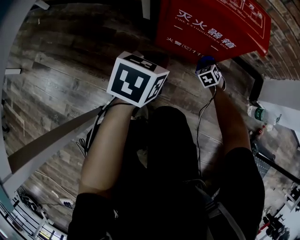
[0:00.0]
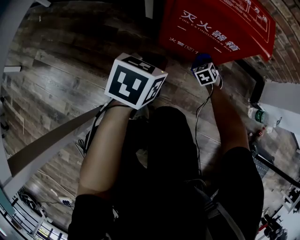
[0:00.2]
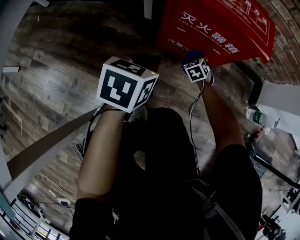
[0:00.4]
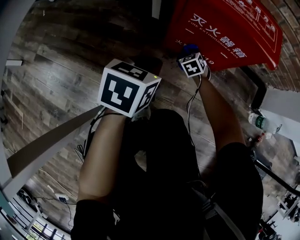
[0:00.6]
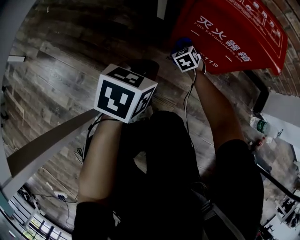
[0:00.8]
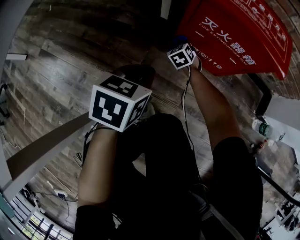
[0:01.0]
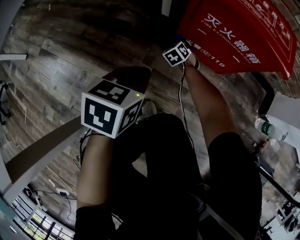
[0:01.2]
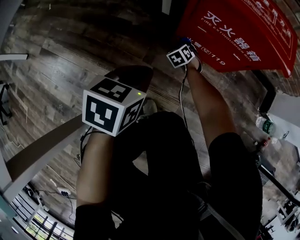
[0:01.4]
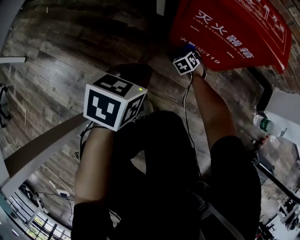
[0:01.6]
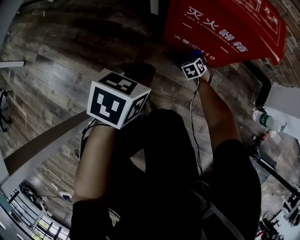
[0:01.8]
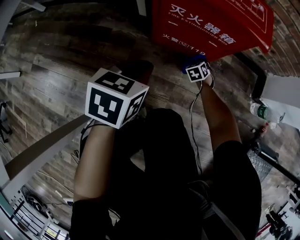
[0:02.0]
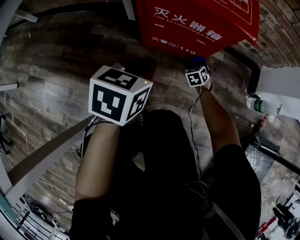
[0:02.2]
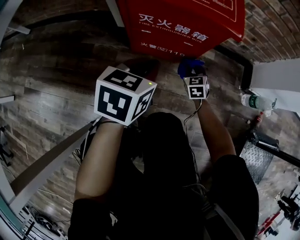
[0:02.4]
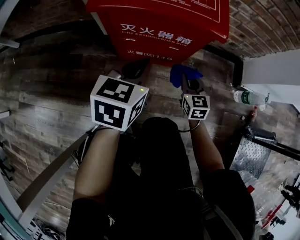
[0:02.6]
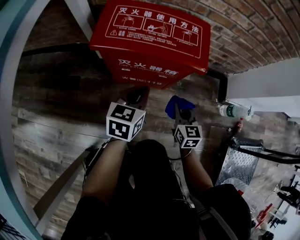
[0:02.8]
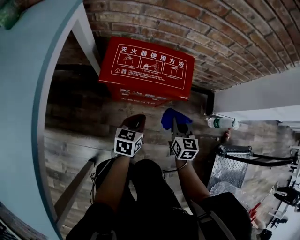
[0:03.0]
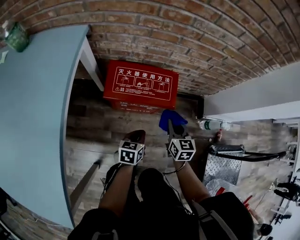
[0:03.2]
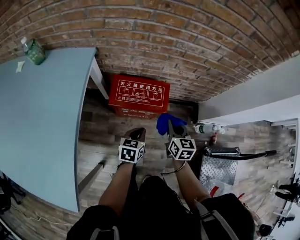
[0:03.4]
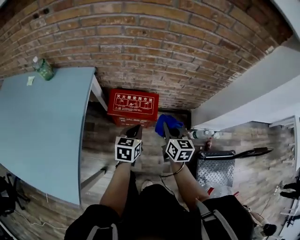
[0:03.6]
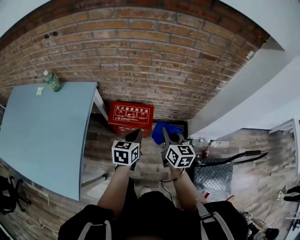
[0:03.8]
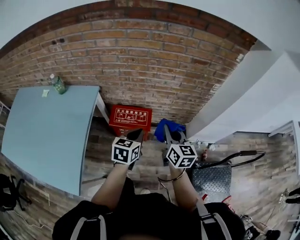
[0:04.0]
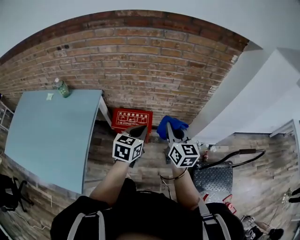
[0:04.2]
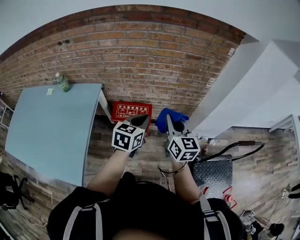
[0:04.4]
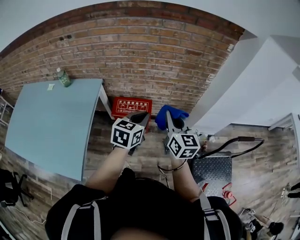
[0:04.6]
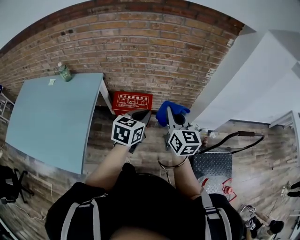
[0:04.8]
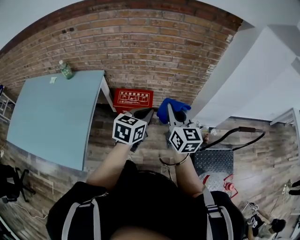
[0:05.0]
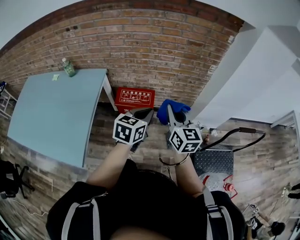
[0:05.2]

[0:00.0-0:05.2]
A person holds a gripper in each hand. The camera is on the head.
0:00.0 to 0:01.8: The right gripper shifts about 5 cm downward, and moves approximately 25 cm to the left and comes back.
0:01.8 to 0:03.4: The left gripper goes about 30 cm upward and to the right. Meanwhile the right gripper shifts roughly 60 cm upward, and twists some 50 degrees clockwise, seen from behind.
0:03.4 to 0:05.2: The right gripper heads upward and backward, covering some 50 cm, and changes its angle by about 30 degrees; the left gripper goes approximately 40 cm upward, and rotates approximately 20 degrees.

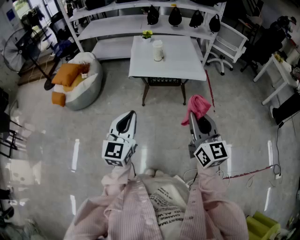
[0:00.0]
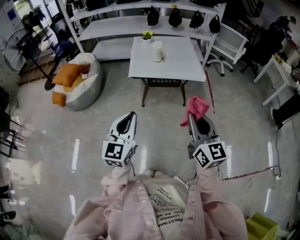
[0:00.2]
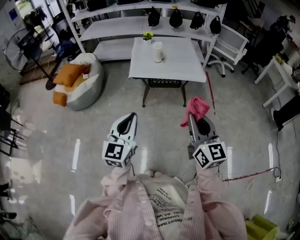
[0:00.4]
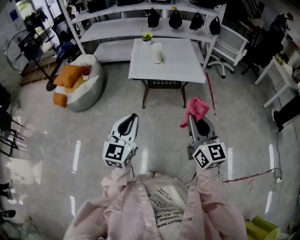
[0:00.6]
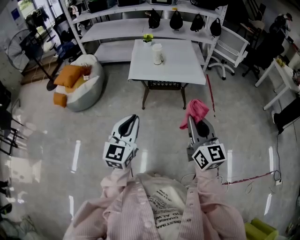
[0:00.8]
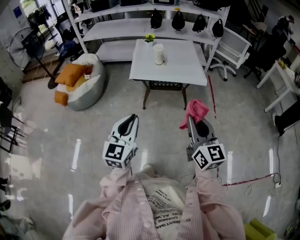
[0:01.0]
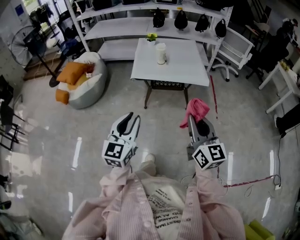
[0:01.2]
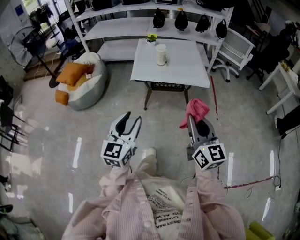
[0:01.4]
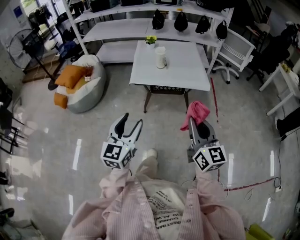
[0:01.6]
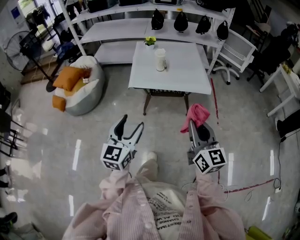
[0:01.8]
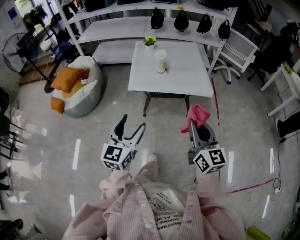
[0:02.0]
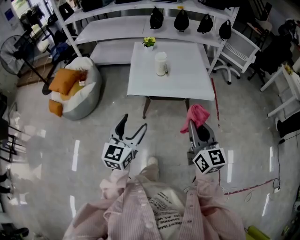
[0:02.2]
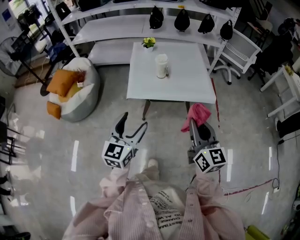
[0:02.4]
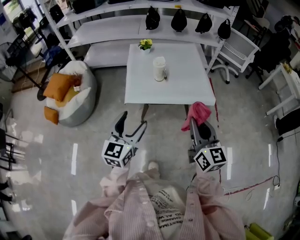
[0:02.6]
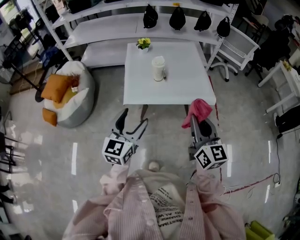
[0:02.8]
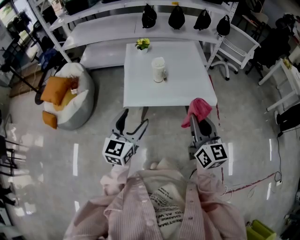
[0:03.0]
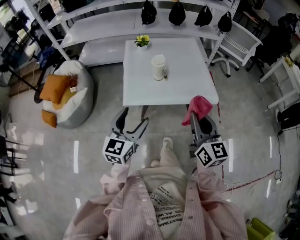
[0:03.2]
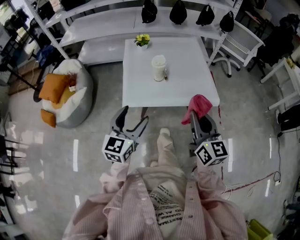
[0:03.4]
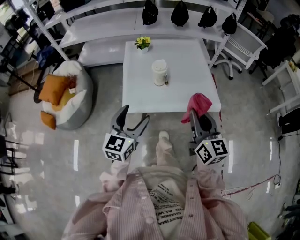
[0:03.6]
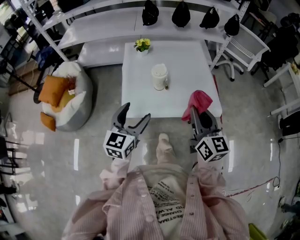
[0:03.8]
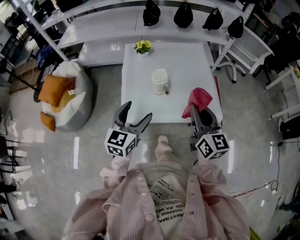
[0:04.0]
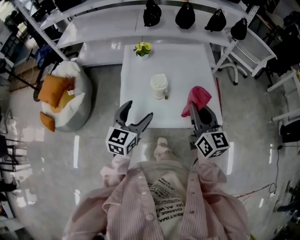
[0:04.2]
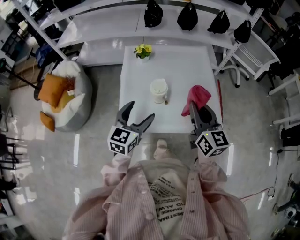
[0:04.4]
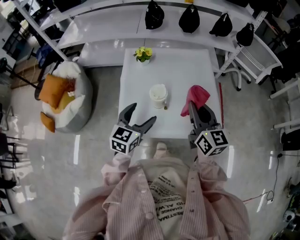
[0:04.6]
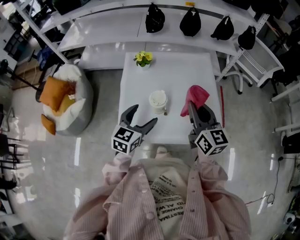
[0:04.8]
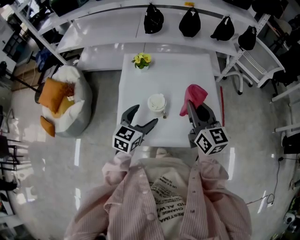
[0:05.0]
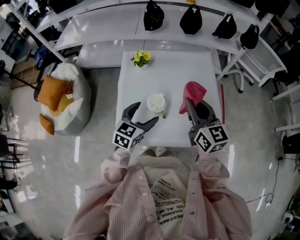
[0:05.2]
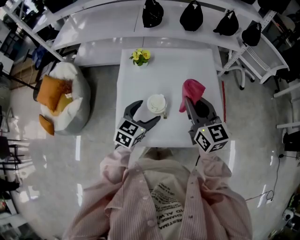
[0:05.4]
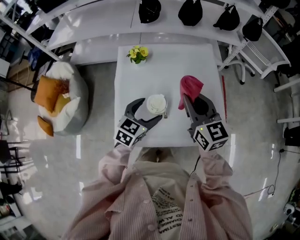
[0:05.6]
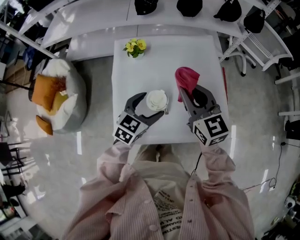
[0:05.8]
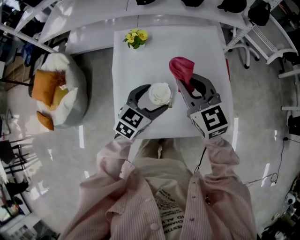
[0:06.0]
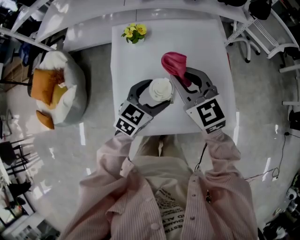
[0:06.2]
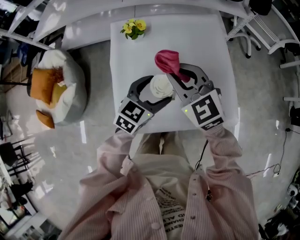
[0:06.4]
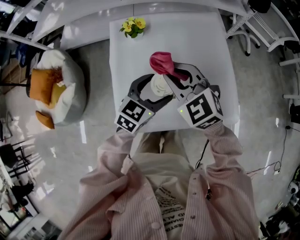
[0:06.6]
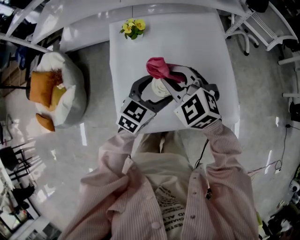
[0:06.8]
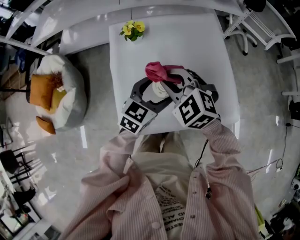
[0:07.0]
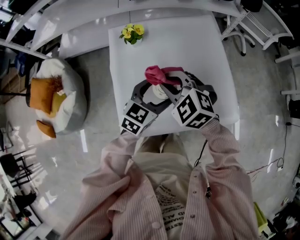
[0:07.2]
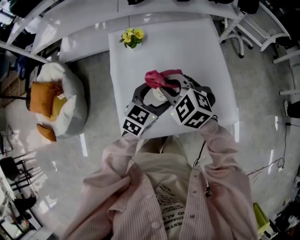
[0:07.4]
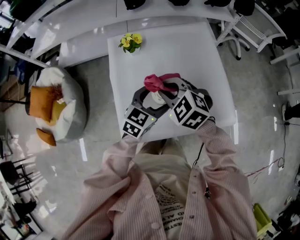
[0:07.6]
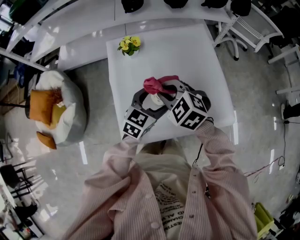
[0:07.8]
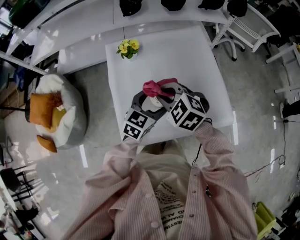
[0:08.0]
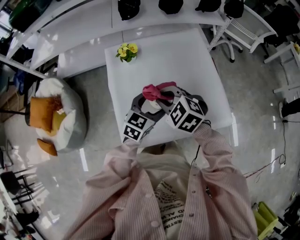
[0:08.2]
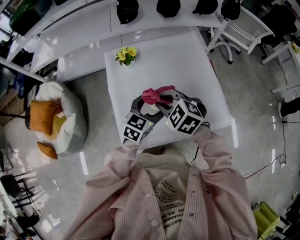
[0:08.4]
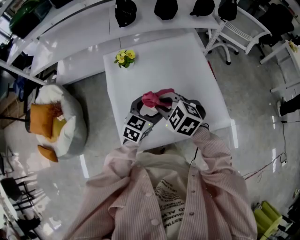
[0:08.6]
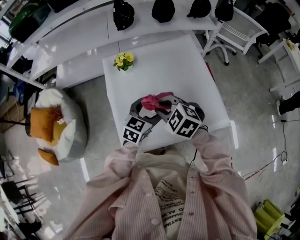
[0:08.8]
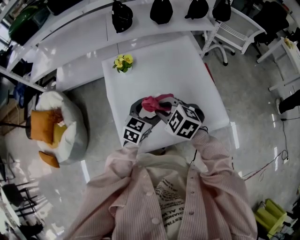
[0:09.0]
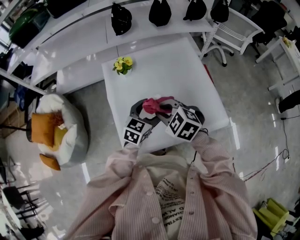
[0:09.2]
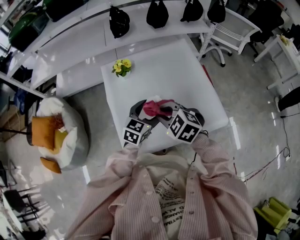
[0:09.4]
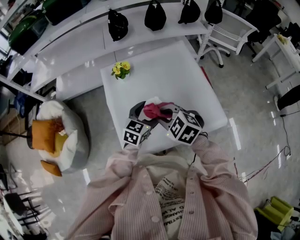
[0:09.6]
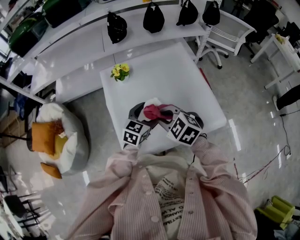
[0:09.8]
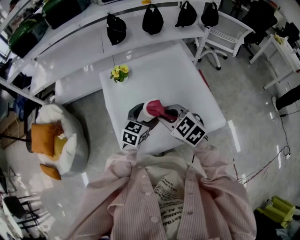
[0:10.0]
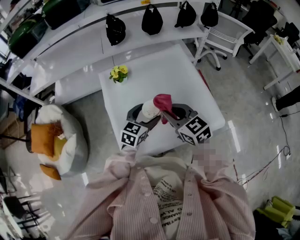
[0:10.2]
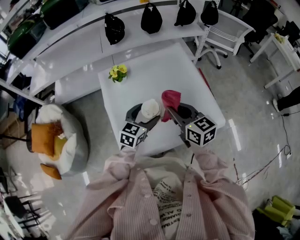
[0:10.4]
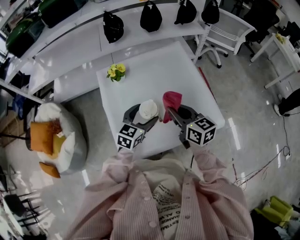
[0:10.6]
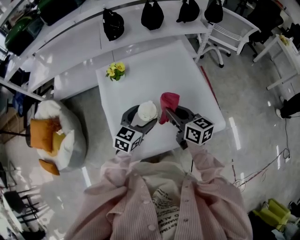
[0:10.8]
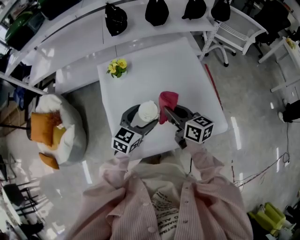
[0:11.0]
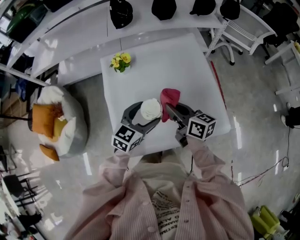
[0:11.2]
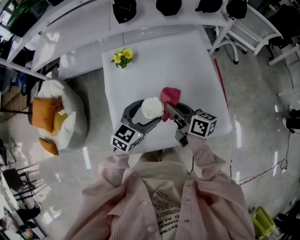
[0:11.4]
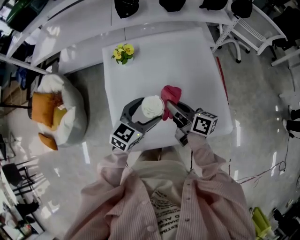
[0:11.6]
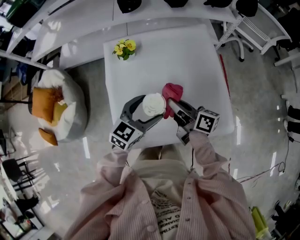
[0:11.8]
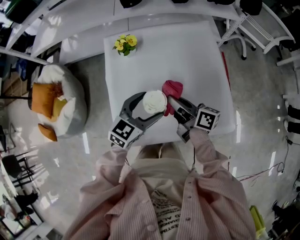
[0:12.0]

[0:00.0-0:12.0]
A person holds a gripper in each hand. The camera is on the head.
0:00.0 to 0:01.6: Both grippers move forward, about 5 cm. The left gripper opens its fingers.
0:01.6 to 0:03.0: The two grippers go some 25 cm forward.
0:03.0 to 0:04.4: Both grippers travel together forward, some 25 cm.
0:04.4 to 0:06.0: The right gripper is displaced forward and to the left by about 20 cm, and changes its angle by about 30 degrees, while the left gripper heads forward and downward, covering roughly 15 cm, and changes its angle by roughly 20 degrees.
0:06.0 to 0:07.6: The right gripper heads downward and to the left, covering approximately 10 cm, and swivels some 30 degrees.
0:07.6 to 0:09.0: The grippers move only a little.
0:09.0 to 0:10.4: The right gripper shifts some 10 cm to the right, and points its fingers about 30 degrees further upward.
0:10.4 to 0:12.0: The right gripper is displaced downward and forward by some 10 cm, and twists approximately 40 degrees clockwise, seen from behind.

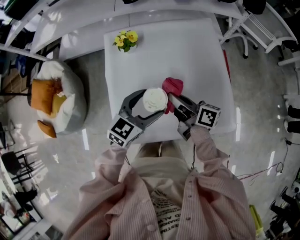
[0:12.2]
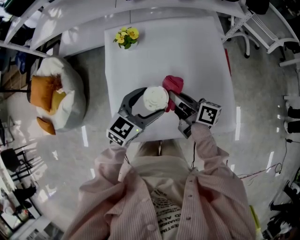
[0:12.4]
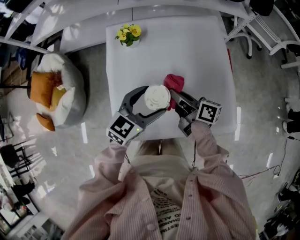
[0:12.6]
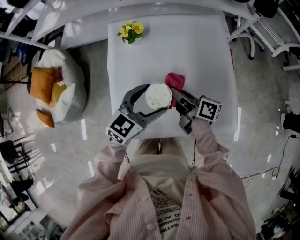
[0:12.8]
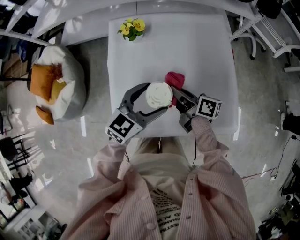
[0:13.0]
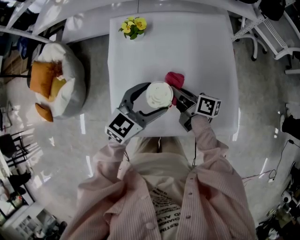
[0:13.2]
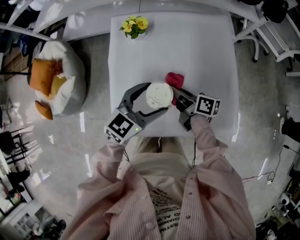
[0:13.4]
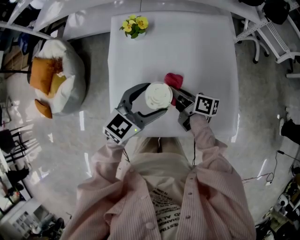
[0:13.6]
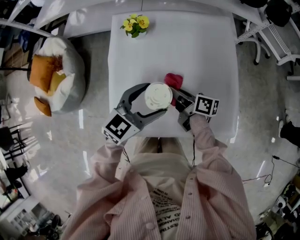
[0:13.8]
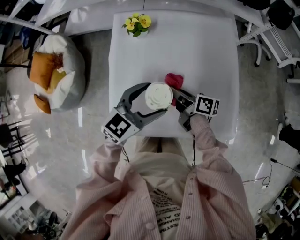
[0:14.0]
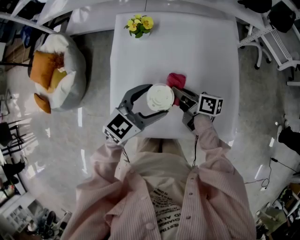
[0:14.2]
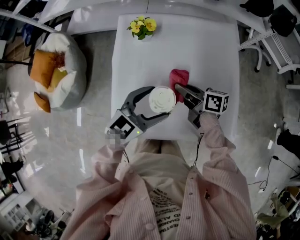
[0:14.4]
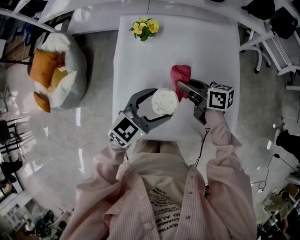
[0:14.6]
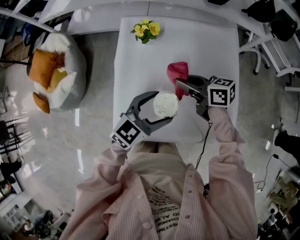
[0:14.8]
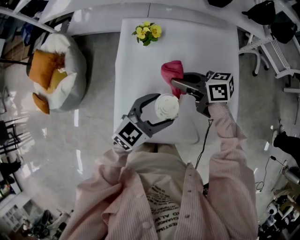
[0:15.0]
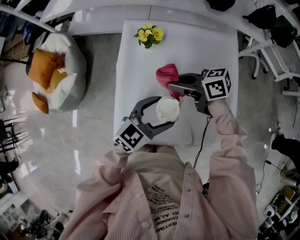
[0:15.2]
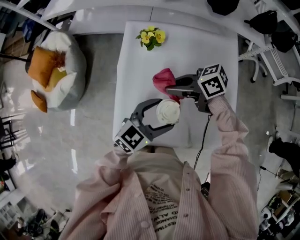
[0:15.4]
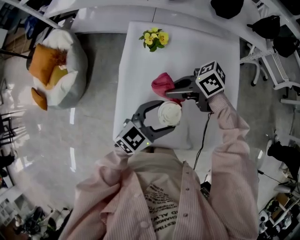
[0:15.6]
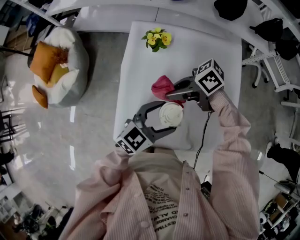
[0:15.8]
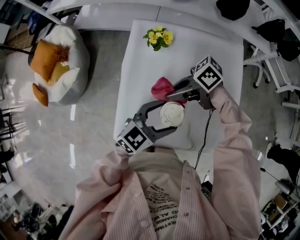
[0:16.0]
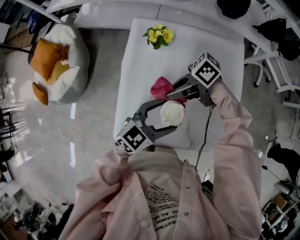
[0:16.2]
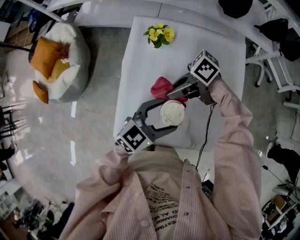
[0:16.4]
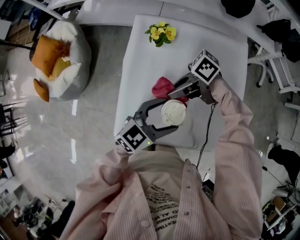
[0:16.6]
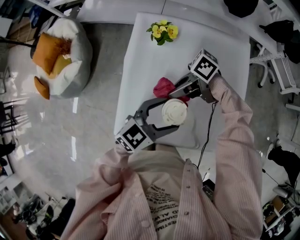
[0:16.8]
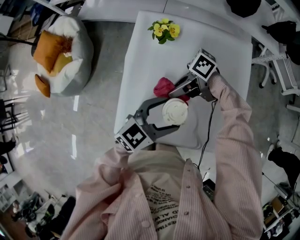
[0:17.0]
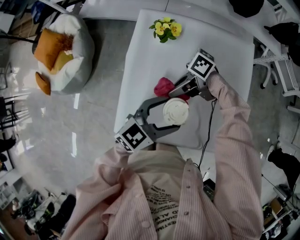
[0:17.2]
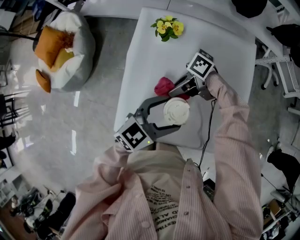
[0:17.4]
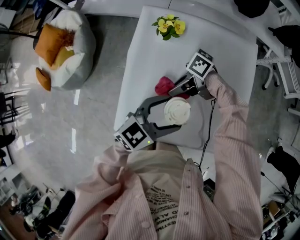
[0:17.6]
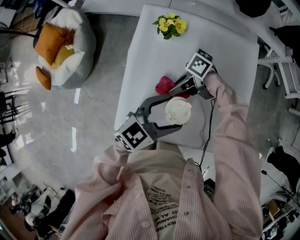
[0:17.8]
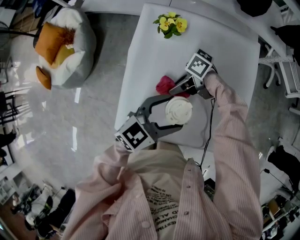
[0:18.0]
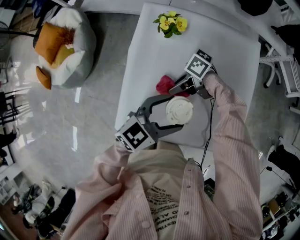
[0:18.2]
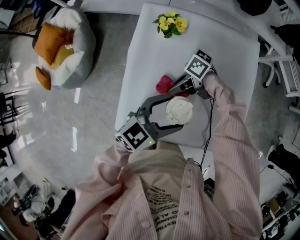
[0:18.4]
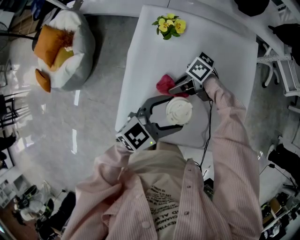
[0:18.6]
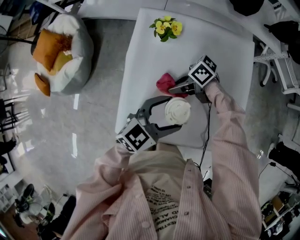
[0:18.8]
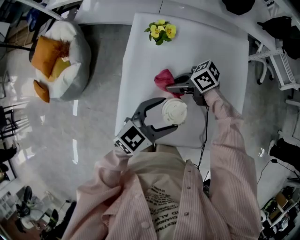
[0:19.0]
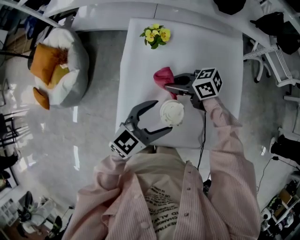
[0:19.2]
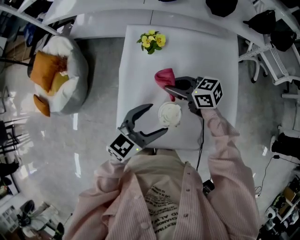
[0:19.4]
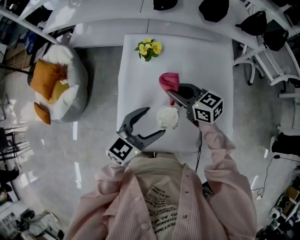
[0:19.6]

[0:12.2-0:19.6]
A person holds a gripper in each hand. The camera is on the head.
0:12.2 to 0:13.6: The right gripper travels downward by about 10 cm.
0:13.6 to 0:15.2: The right gripper shifts approximately 10 cm upward, and changes its angle by about 50 degrees.
0:15.2 to 0:16.6: The right gripper changes place by roughly 5 cm, and swivels some 40 degrees.
0:16.6 to 0:18.2: The right gripper goes some 10 cm downward.
0:18.2 to 0:19.6: The left gripper ends up some 5 cm from where it was; the right gripper heads upward, covering about 15 cm, and changes its angle by about 70 degrees.
